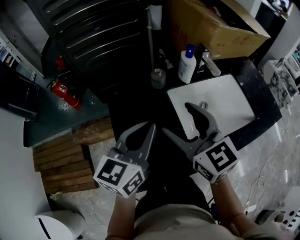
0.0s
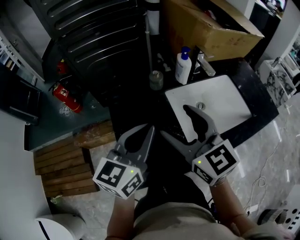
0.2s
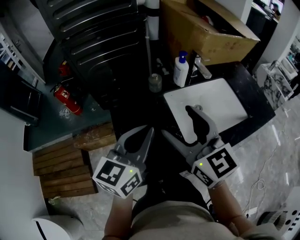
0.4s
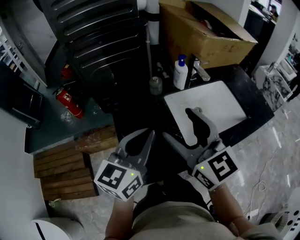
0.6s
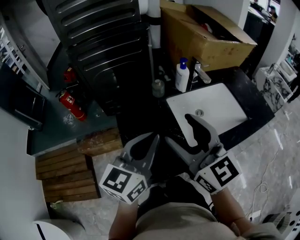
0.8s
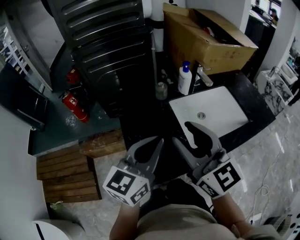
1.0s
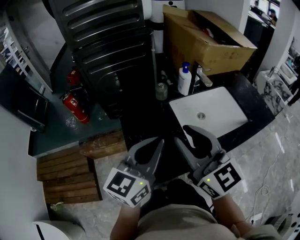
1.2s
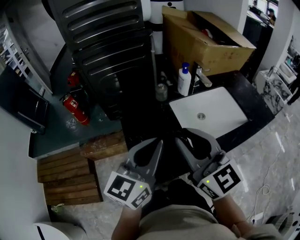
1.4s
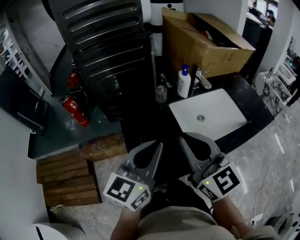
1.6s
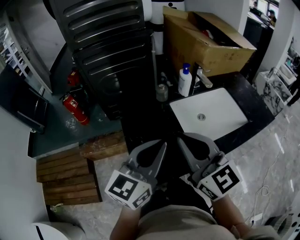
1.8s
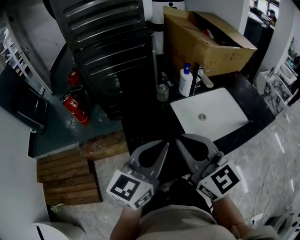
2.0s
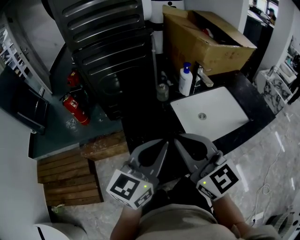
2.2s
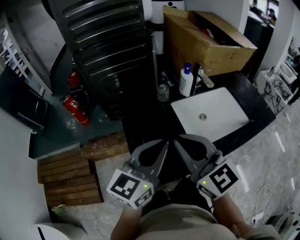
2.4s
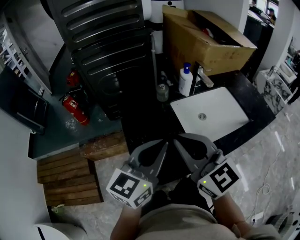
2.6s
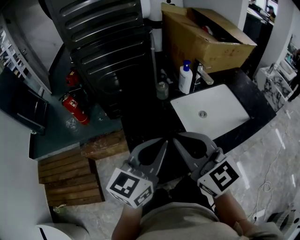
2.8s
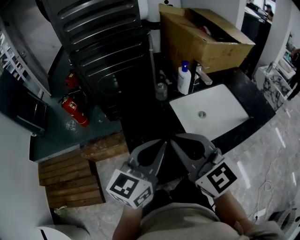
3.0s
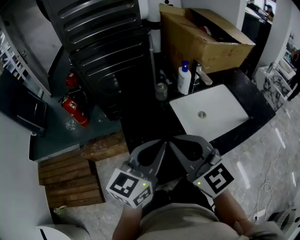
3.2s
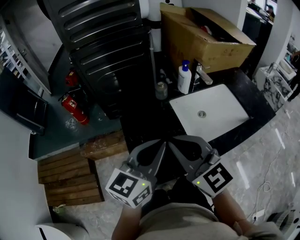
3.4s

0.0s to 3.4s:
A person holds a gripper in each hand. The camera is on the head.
0.0s to 1.6s: Both grippers move backward and upward, about 15 cm. The right gripper closes.
1.6s to 3.4s: The grippers move only a little.

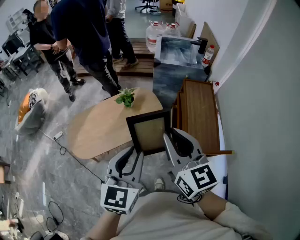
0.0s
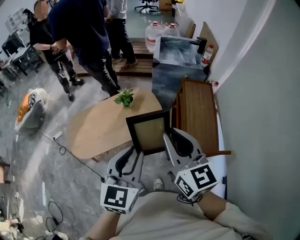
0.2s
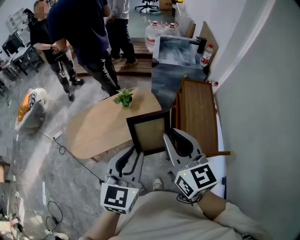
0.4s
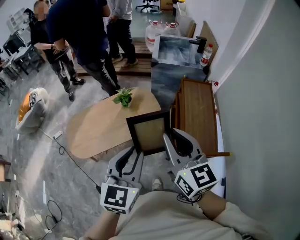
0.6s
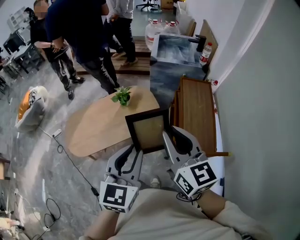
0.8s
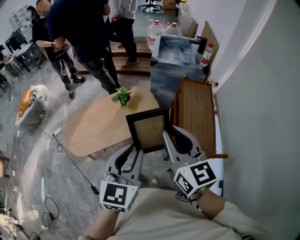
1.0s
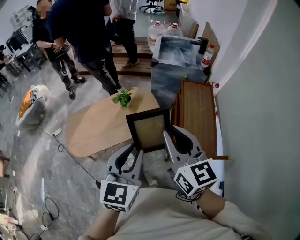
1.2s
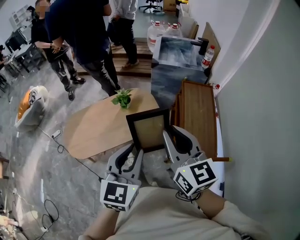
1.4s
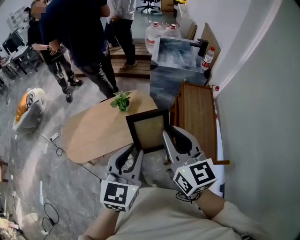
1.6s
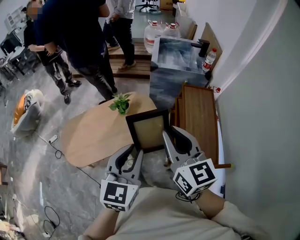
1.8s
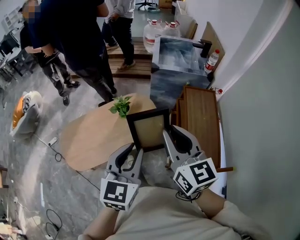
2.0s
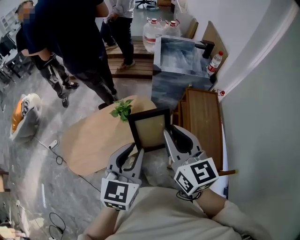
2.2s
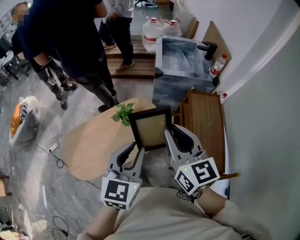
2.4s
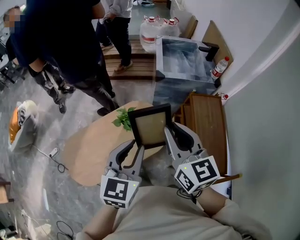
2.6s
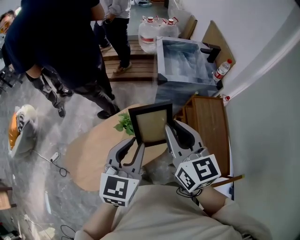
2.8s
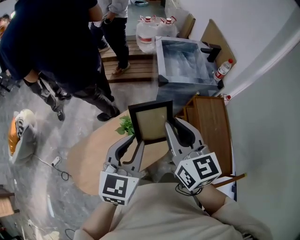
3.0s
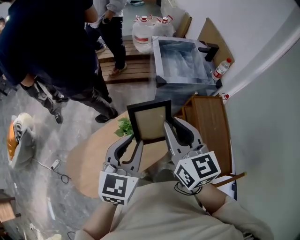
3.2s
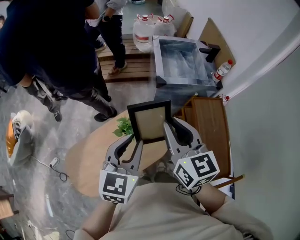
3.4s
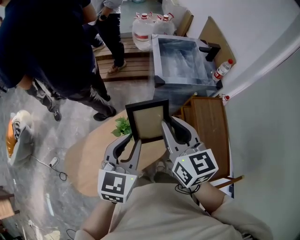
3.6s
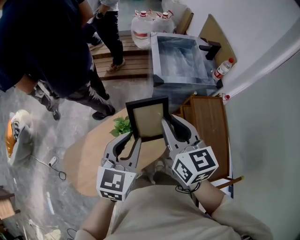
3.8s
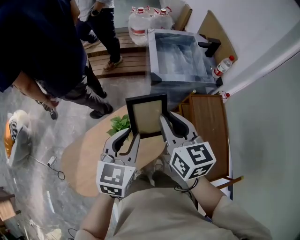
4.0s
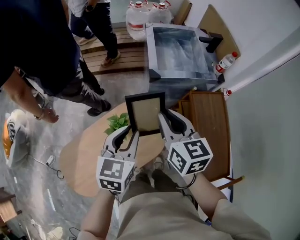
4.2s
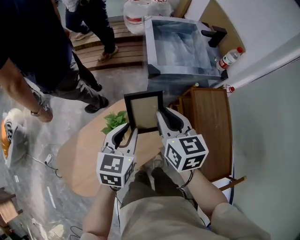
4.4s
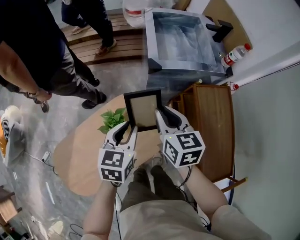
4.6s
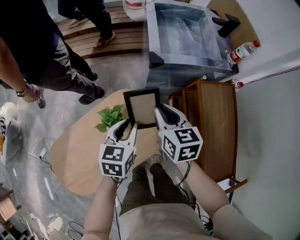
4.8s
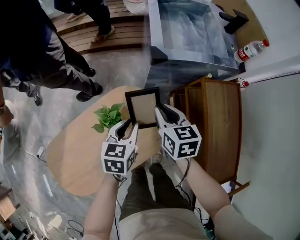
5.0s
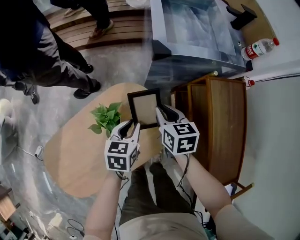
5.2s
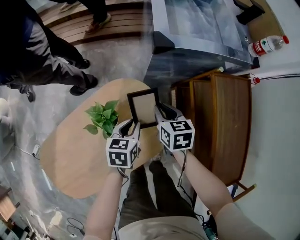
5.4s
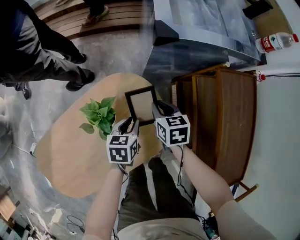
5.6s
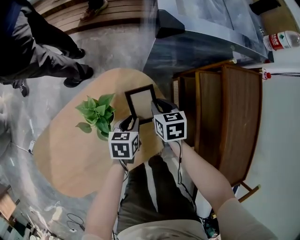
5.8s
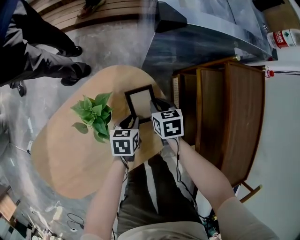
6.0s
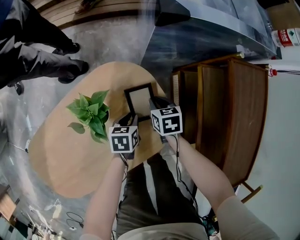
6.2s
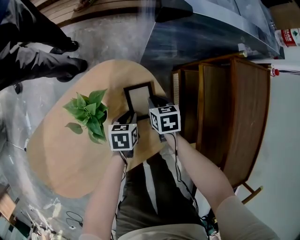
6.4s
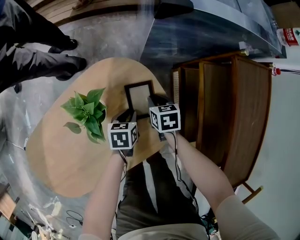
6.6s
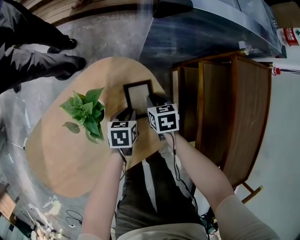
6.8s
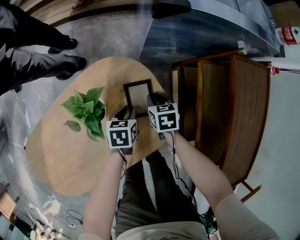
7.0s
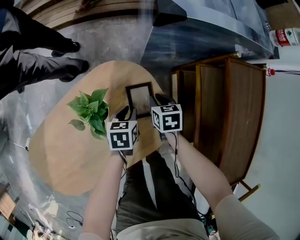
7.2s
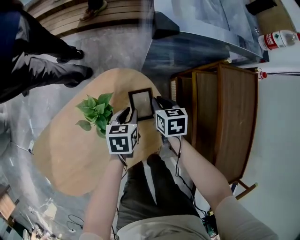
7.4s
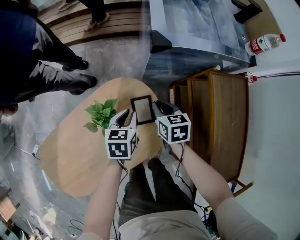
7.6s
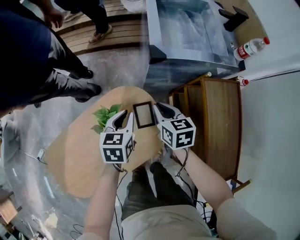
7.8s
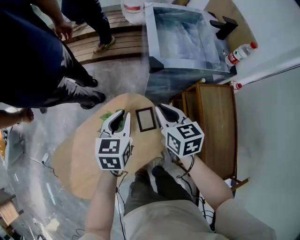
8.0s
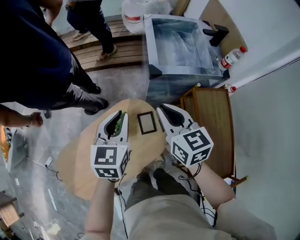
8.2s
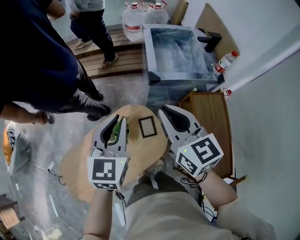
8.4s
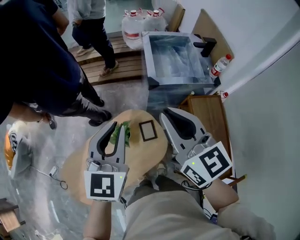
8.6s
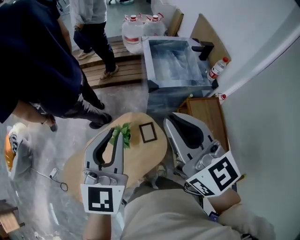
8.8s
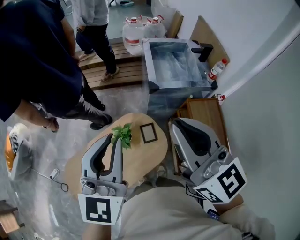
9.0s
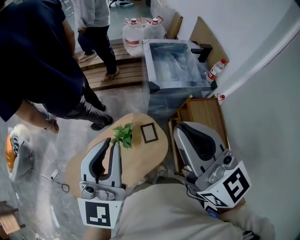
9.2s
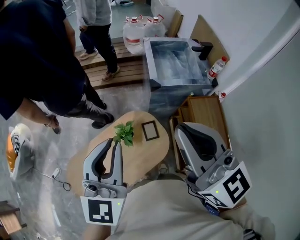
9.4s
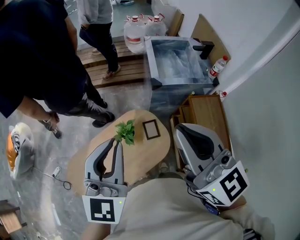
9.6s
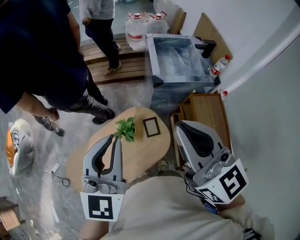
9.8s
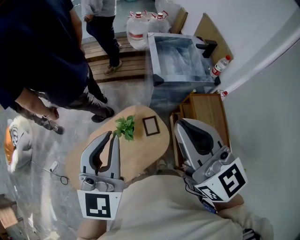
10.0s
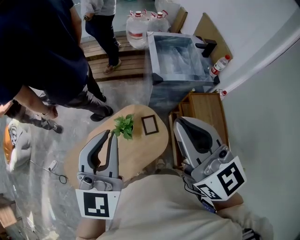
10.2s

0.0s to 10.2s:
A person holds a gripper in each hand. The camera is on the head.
0.0s to 1.4s: The left gripper shifts by about 5 cm; the right gripper moves some 5 cm.
1.4s to 3.0s: The right gripper travels forward by about 35 cm. The left gripper travels forward and to the left by approximately 35 cm.
3.0s to 4.4s: Both grippers travel together downward and forward, about 20 cm.
4.4s to 5.8s: Both grippers move downward, about 50 cm. The right gripper rotates some 30 degrees. The left gripper swivels about 30 degrees.
5.8s to 7.2s: The right gripper moves downward, about 5 cm, while the left gripper travels downward and back again, roughly 10 cm each way.
7.2s to 8.8s: Both grippers travel together upward, about 70 cm. The right gripper points its fingers some 60 degrees further upward. The left gripper tips its fingers upward by roughly 50 degrees.
8.8s to 10.2s: The right gripper moves about 5 cm. Meanwhile the left gripper changes place by about 5 cm.

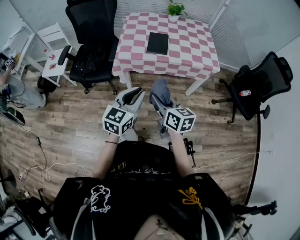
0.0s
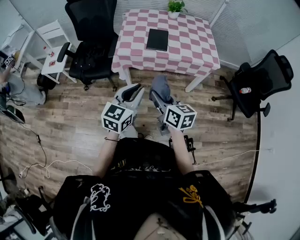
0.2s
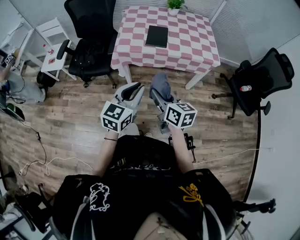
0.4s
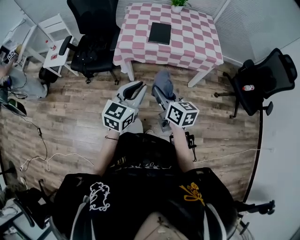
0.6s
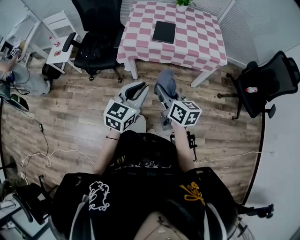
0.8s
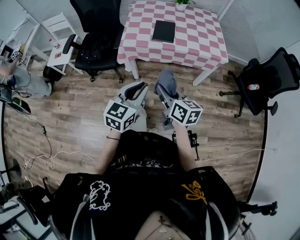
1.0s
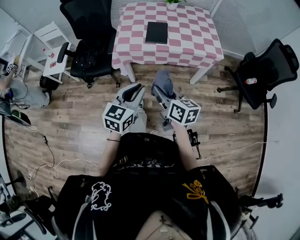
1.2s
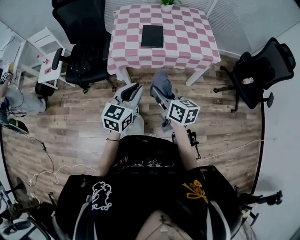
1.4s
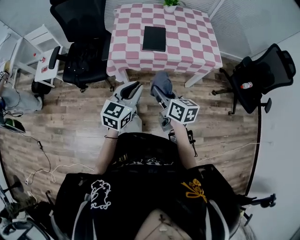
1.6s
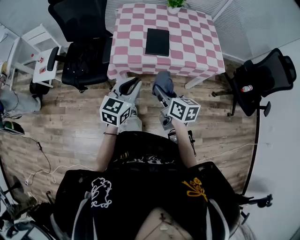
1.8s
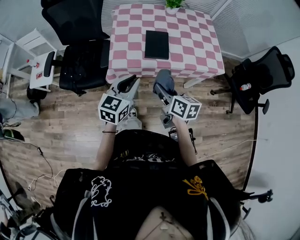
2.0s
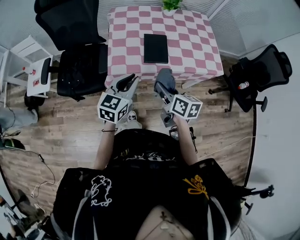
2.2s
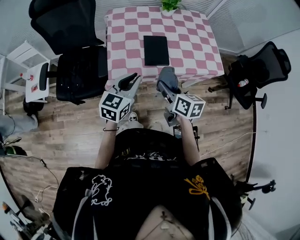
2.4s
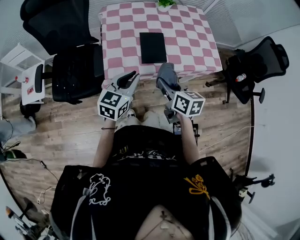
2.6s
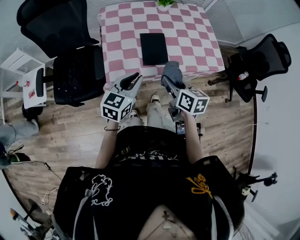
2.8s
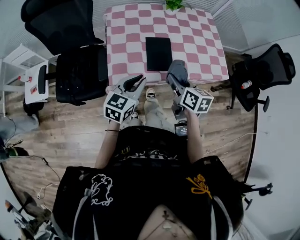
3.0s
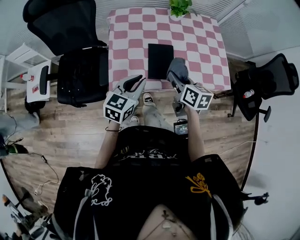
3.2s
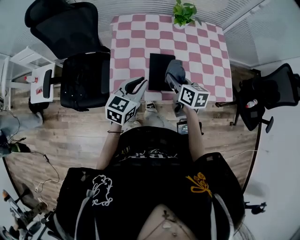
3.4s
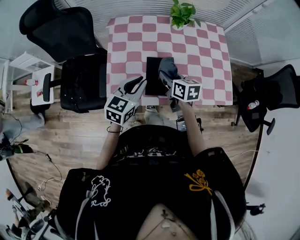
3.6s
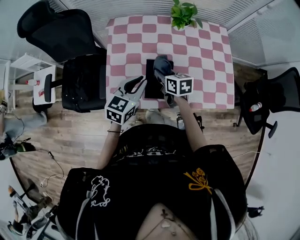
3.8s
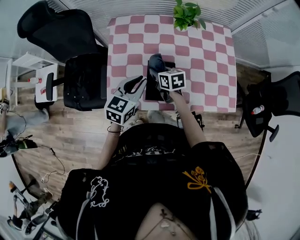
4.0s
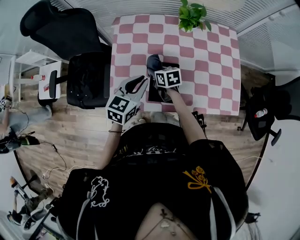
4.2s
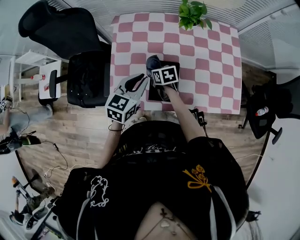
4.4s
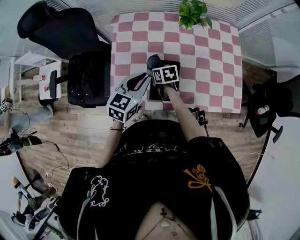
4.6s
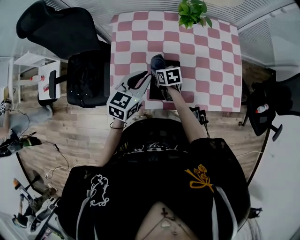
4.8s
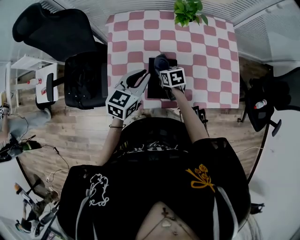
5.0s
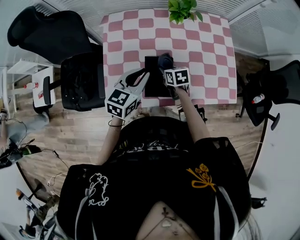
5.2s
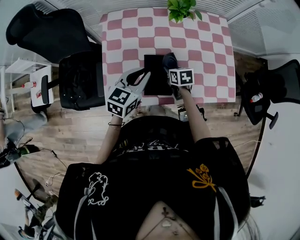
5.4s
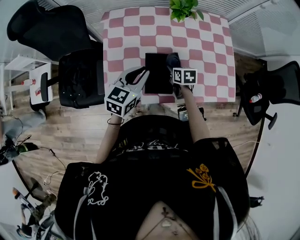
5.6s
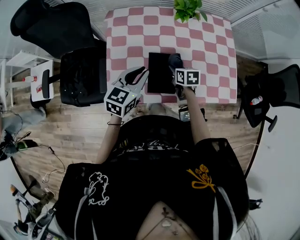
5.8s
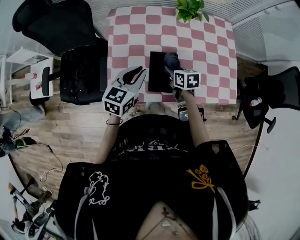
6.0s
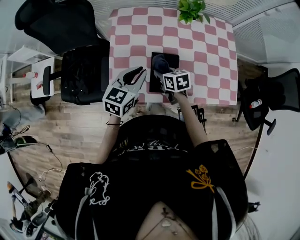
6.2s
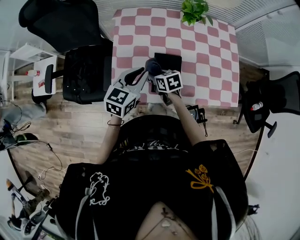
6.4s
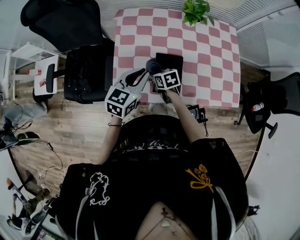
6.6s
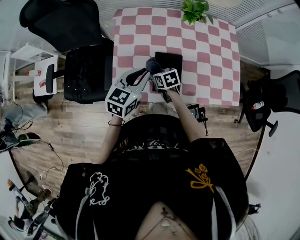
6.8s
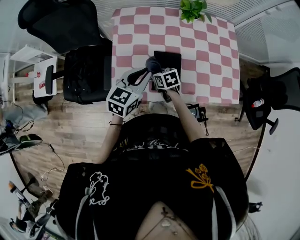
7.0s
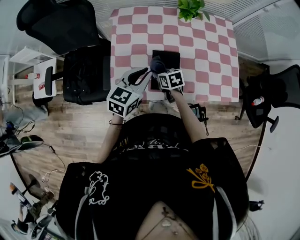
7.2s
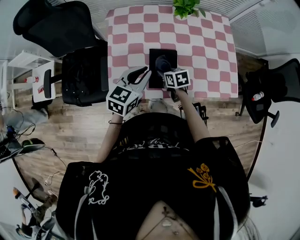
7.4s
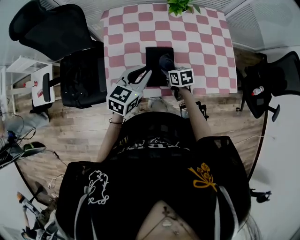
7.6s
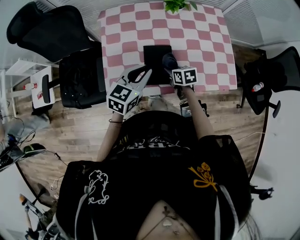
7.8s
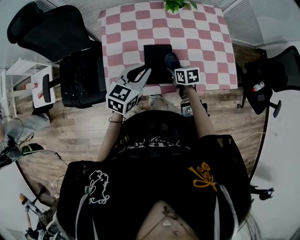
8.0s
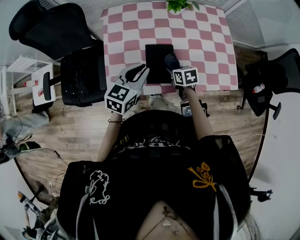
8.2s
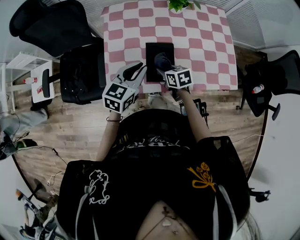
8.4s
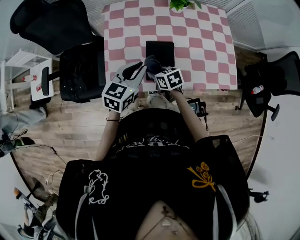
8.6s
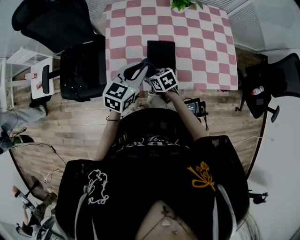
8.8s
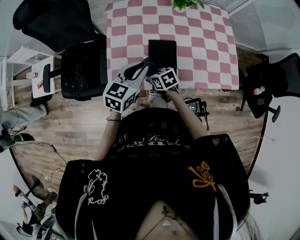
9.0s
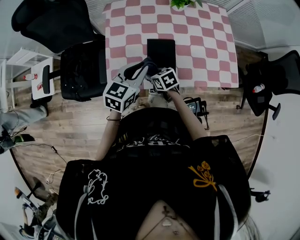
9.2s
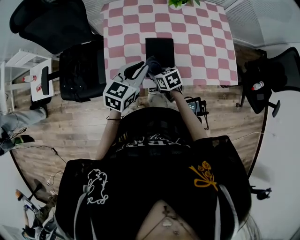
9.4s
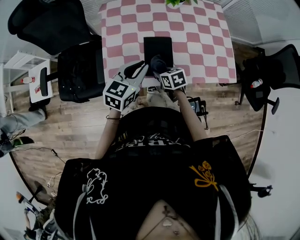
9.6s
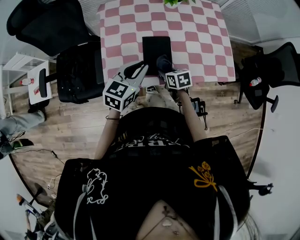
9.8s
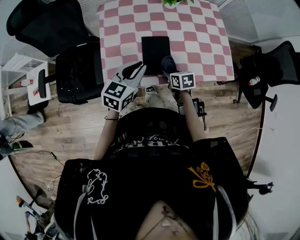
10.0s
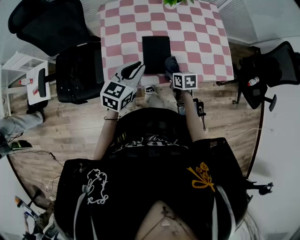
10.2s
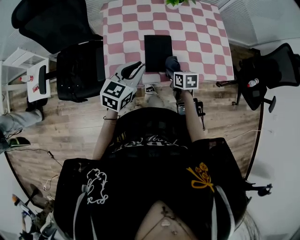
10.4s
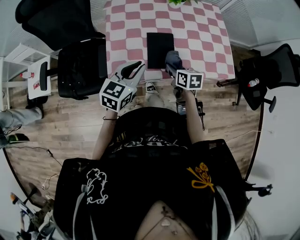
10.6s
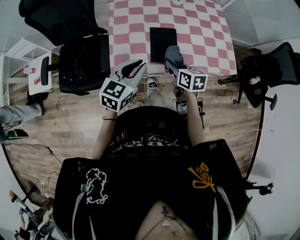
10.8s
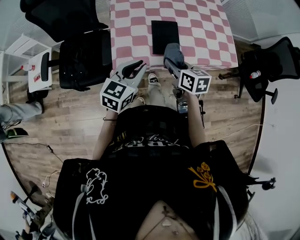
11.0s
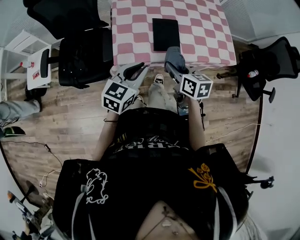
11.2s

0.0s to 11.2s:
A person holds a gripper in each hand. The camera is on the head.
0.0s to 1.6s: Both grippers move forward, some 10 cm.
1.6s to 3.2s: Both grippers travel together forward, roughly 30 cm.
3.2s to 4.8s: The right gripper is displaced downward and forward by some 25 cm, and rotates approximately 30 degrees. The left gripper heads forward, covering about 15 cm.
4.8s to 6.4s: The right gripper moves backward, roughly 5 cm, and travels to the right and back again, about 10 cm each way.
6.4s to 8.0s: The right gripper heads to the right, covering some 15 cm; the left gripper shifts about 5 cm to the right.
8.0s to 9.6s: The right gripper shifts roughly 10 cm to the left and backward.
9.6s to 11.2s: The left gripper goes approximately 15 cm backward; the right gripper shifts approximately 20 cm upward and backward, and rotates approximately 20 degrees.
